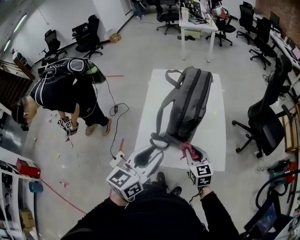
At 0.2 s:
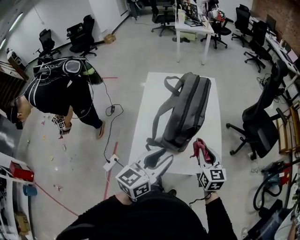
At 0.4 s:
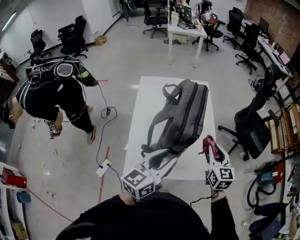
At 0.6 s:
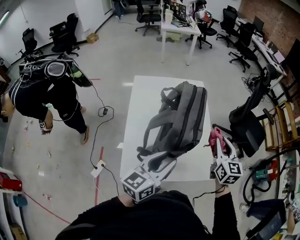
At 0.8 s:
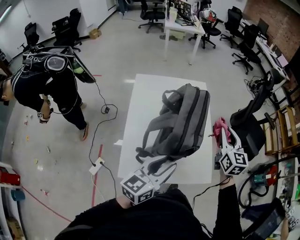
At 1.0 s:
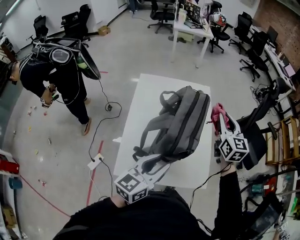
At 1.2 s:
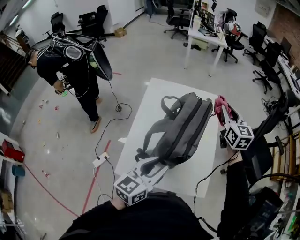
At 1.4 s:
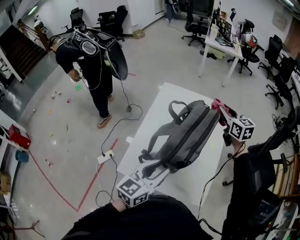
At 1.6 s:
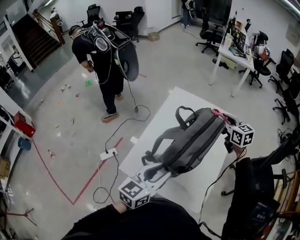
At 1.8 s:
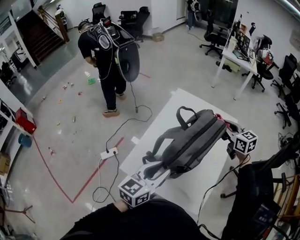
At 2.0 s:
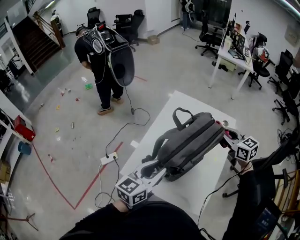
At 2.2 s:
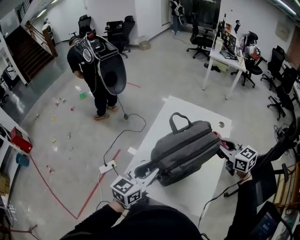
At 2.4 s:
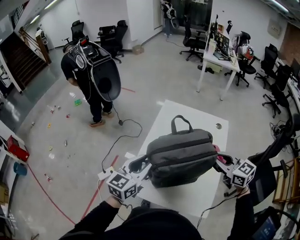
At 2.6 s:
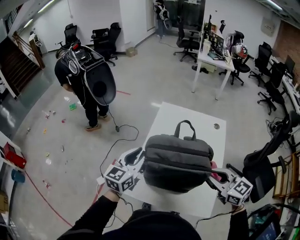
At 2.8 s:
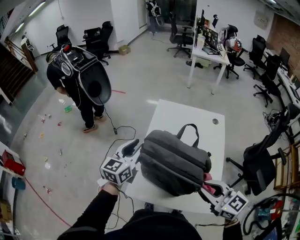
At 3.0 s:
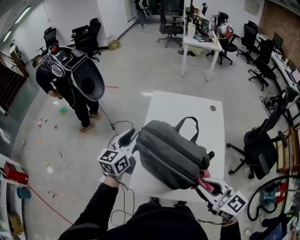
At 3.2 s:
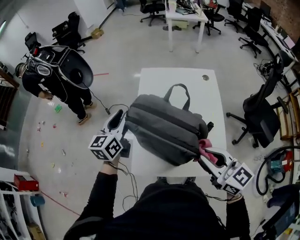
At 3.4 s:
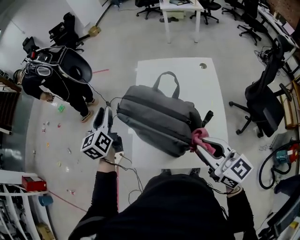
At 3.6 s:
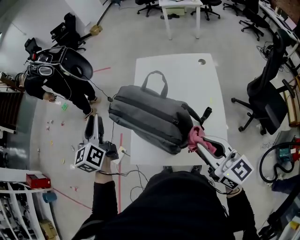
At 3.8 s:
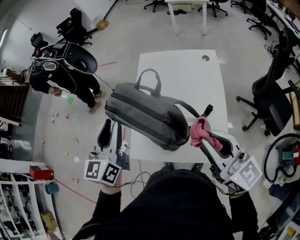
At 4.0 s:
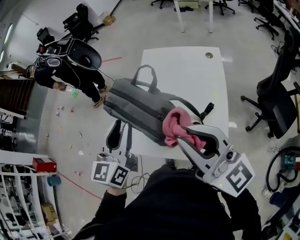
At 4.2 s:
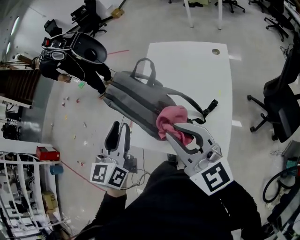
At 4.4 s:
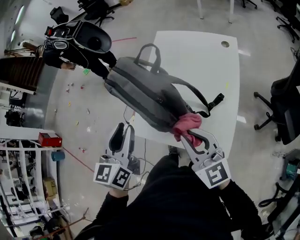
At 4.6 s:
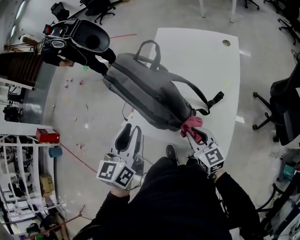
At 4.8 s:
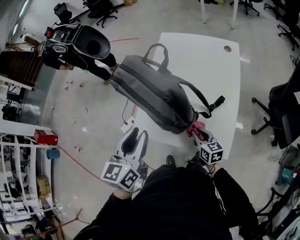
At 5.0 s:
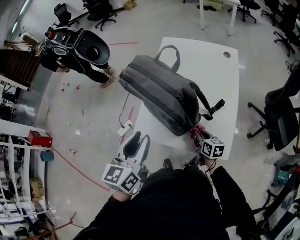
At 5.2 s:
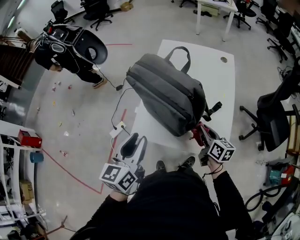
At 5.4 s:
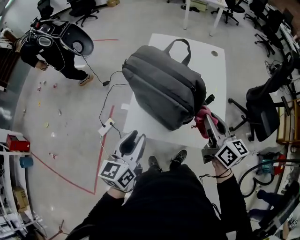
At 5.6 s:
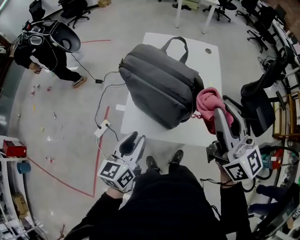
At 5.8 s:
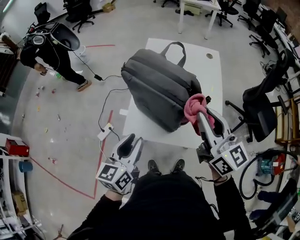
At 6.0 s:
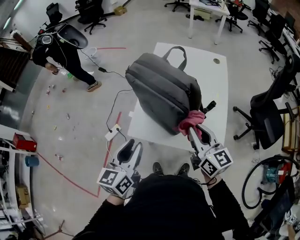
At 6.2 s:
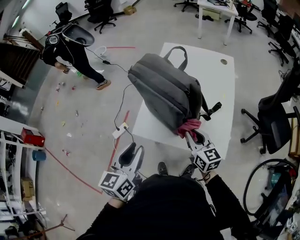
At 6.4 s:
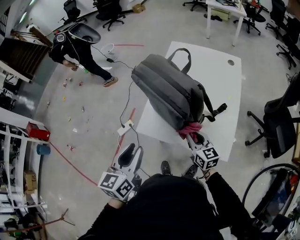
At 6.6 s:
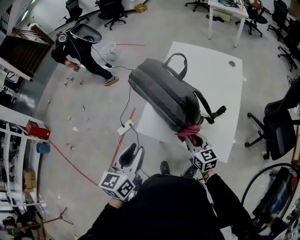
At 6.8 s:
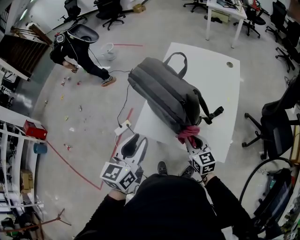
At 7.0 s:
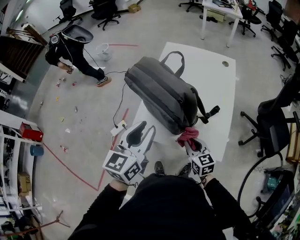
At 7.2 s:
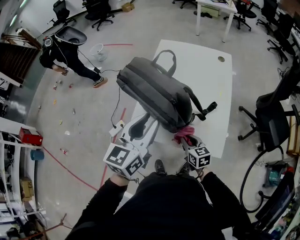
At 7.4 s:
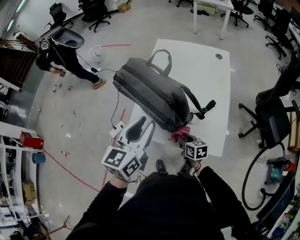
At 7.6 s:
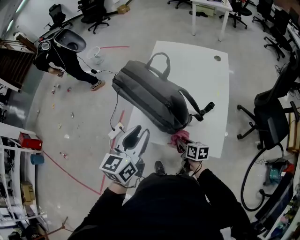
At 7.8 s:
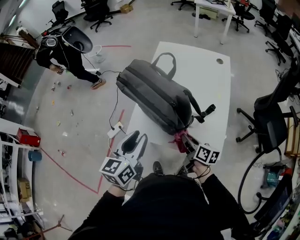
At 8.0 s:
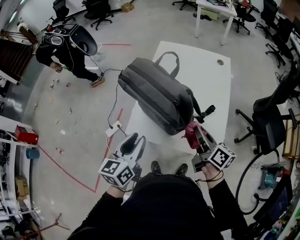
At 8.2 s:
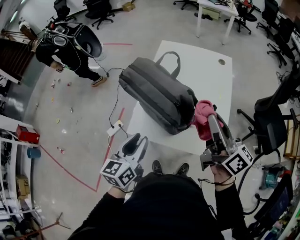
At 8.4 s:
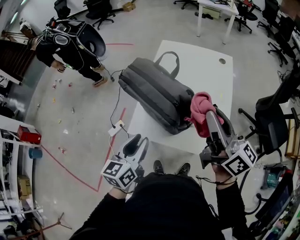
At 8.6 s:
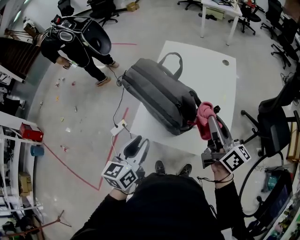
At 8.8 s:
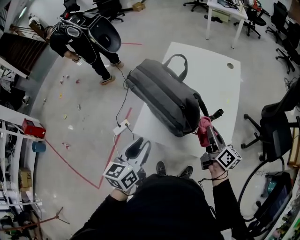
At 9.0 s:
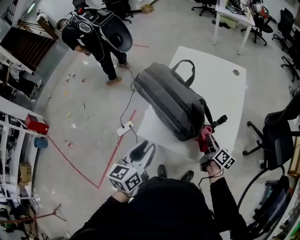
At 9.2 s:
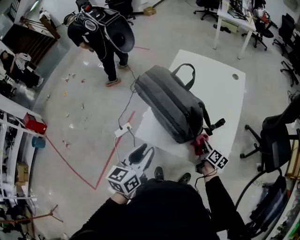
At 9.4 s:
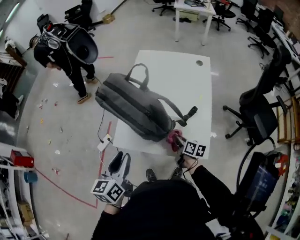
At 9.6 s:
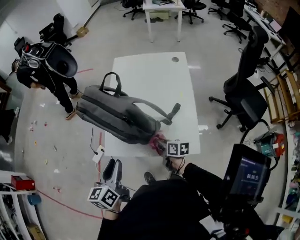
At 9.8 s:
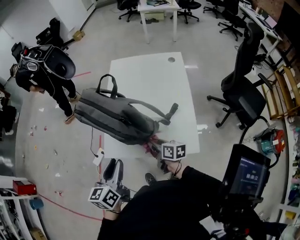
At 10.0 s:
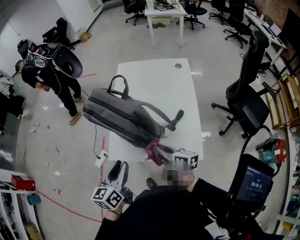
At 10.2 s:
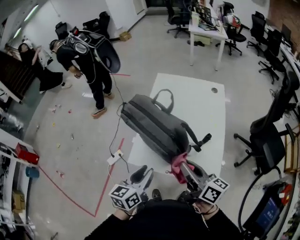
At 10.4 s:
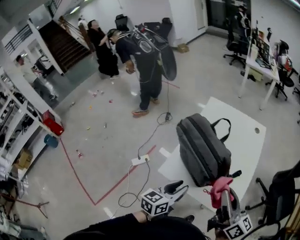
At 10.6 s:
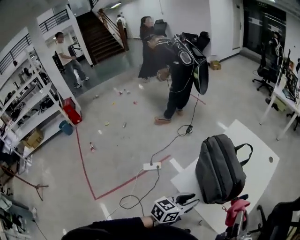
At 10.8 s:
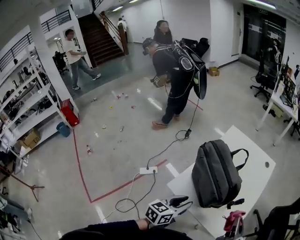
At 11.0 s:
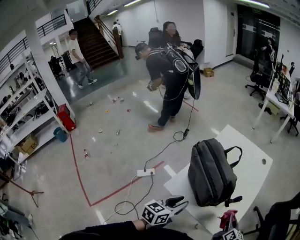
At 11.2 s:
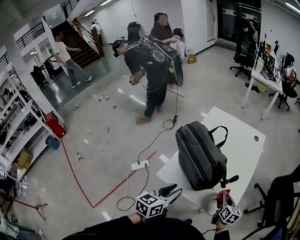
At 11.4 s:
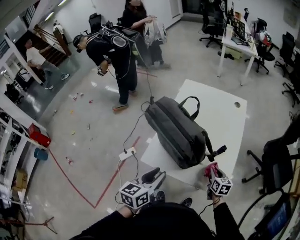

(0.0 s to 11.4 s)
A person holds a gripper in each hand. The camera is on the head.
0.0 s - 1.4 s: The left gripper shifts by approximately 15 cm, while the right gripper ends up about 40 cm from where it was.
1.4 s - 2.8 s: The right gripper is displaced backward and to the left by approximately 35 cm; the left gripper goes some 25 cm forward and to the left.
2.8 s - 4.2 s: The right gripper goes left and right, about 10 cm each way, reversing 2 times, and turns by some 20 degrees; the left gripper travels backward and to the right by roughly 25 cm.
4.2 s - 5.6 s: The left gripper travels to the left, downward and backward by about 20 cm, and swivels about 20 degrees. Meanwhile the right gripper shifts roughly 5 cm to the left, and reaches approximately 40 cm downward, then returns.
5.6 s - 7.2 s: The right gripper travels downward by about 35 cm, and points its fingers approximately 40 degrees further downward. Meanwhile the left gripper travels upward and to the right by about 10 cm.
7.2 s - 8.6 s: The left gripper goes about 10 cm downward, to the left and backward; the right gripper moves up and down over some 40 cm, changing direction 2 times, and tilts its fingers about 30 degrees upward.
8.6 s - 10.0 s: The right gripper is displaced downward and to the left by some 15 cm, and swivels about 30 degrees.
10.0 s - 11.4 s: The right gripper moves downward and to the right, some 15 cm, and rotates approximately 40 degrees.

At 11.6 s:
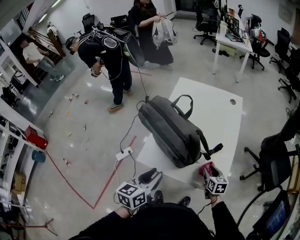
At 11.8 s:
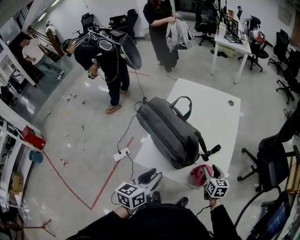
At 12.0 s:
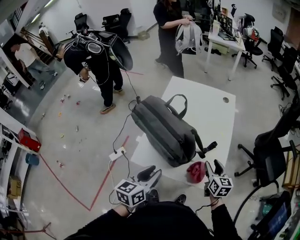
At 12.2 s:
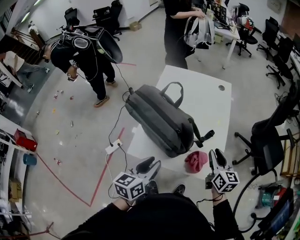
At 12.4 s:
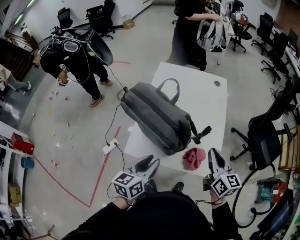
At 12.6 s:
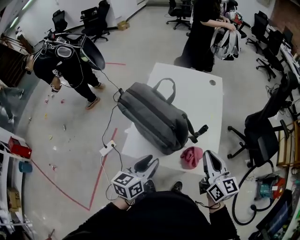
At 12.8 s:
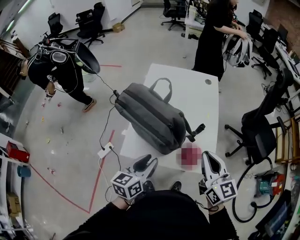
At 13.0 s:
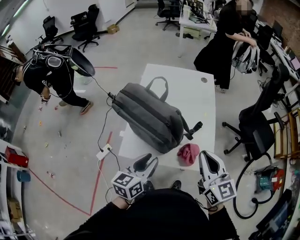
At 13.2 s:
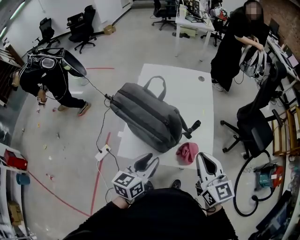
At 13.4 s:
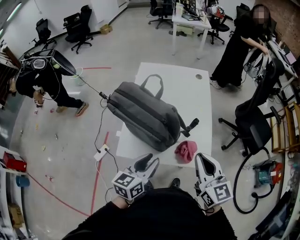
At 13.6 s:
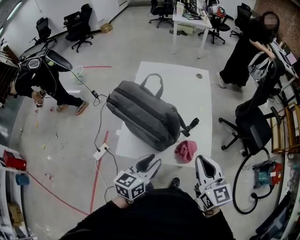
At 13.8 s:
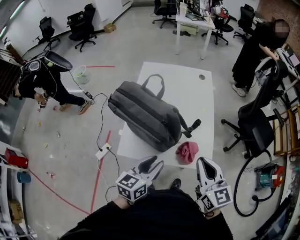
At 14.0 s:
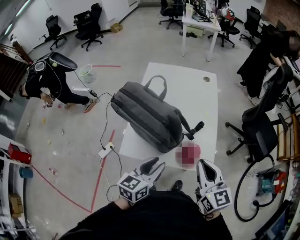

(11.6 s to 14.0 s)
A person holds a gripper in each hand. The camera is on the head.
11.6 s - 12.8 s: The right gripper heads upward, covering approximately 30 cm, tips its fingers upward by some 30 degrees, and closes.
12.8 s - 14.0 s: The left gripper heads to the right, covering about 5 cm.

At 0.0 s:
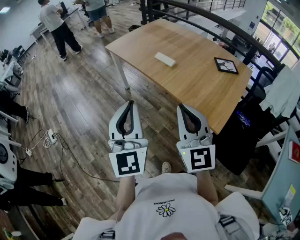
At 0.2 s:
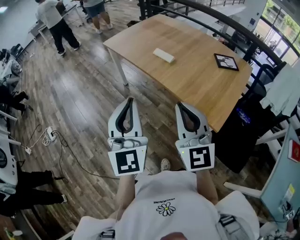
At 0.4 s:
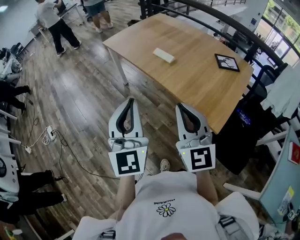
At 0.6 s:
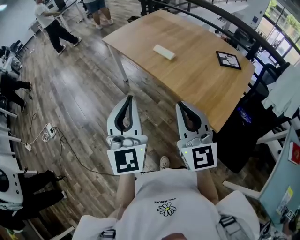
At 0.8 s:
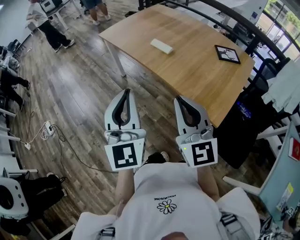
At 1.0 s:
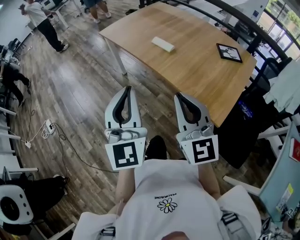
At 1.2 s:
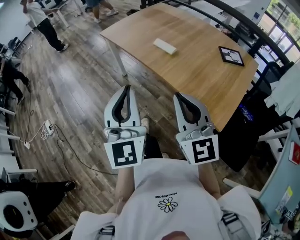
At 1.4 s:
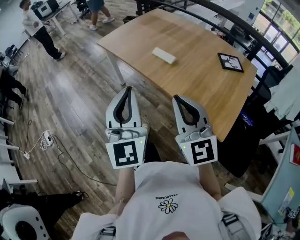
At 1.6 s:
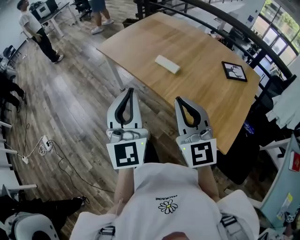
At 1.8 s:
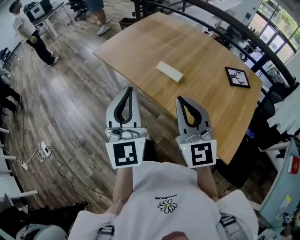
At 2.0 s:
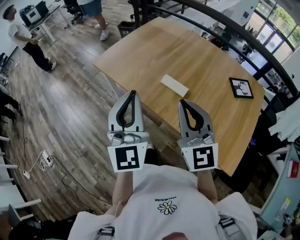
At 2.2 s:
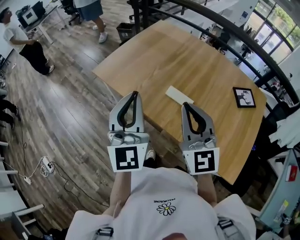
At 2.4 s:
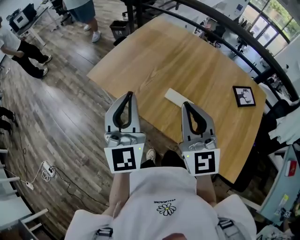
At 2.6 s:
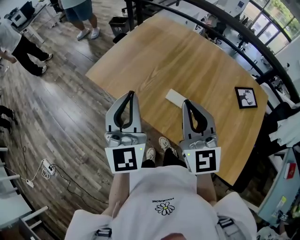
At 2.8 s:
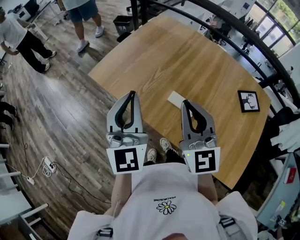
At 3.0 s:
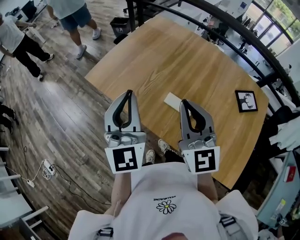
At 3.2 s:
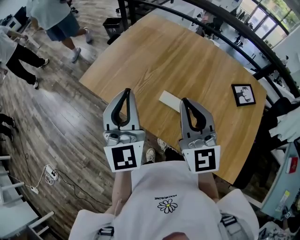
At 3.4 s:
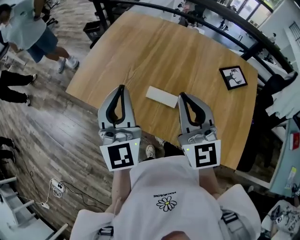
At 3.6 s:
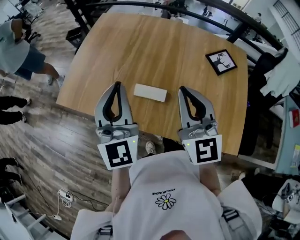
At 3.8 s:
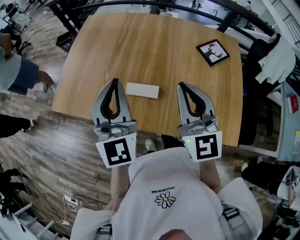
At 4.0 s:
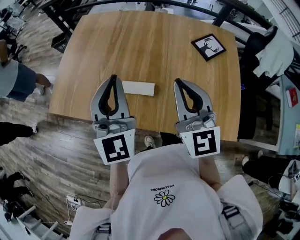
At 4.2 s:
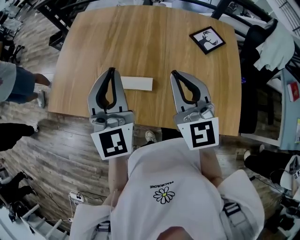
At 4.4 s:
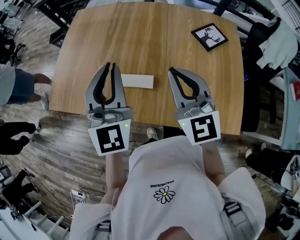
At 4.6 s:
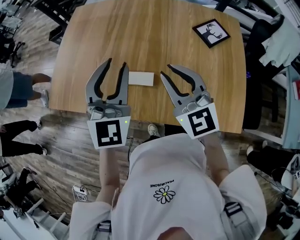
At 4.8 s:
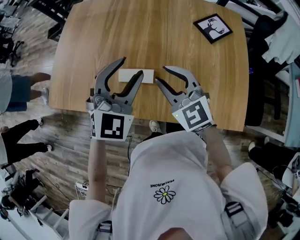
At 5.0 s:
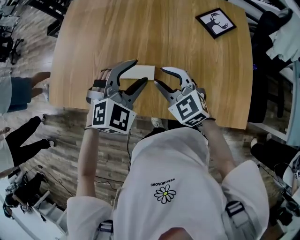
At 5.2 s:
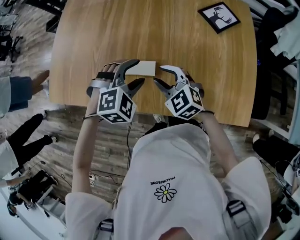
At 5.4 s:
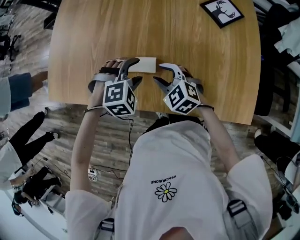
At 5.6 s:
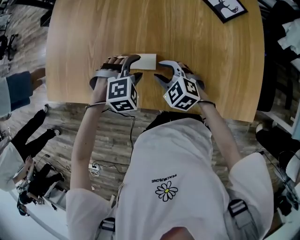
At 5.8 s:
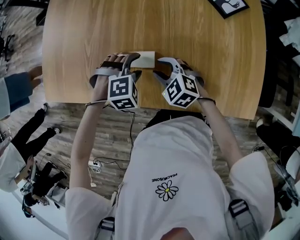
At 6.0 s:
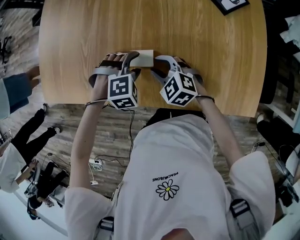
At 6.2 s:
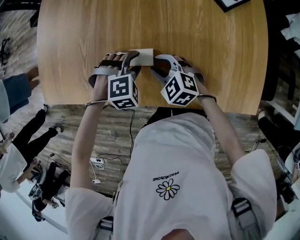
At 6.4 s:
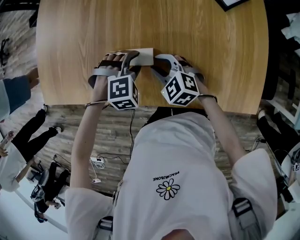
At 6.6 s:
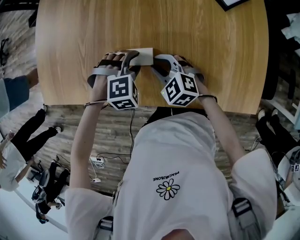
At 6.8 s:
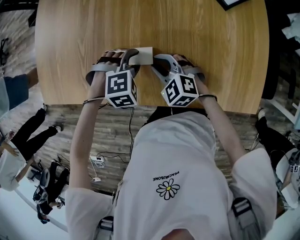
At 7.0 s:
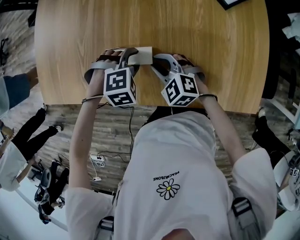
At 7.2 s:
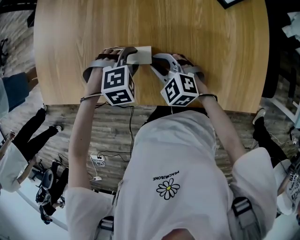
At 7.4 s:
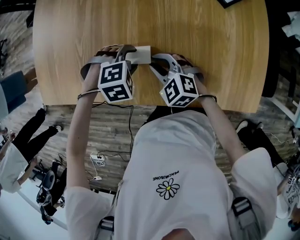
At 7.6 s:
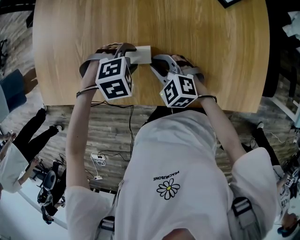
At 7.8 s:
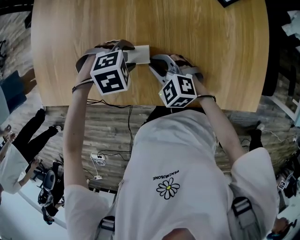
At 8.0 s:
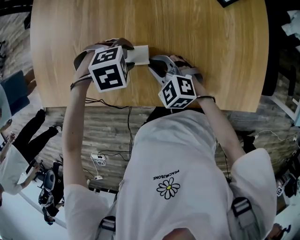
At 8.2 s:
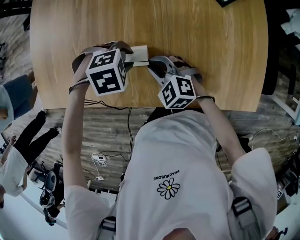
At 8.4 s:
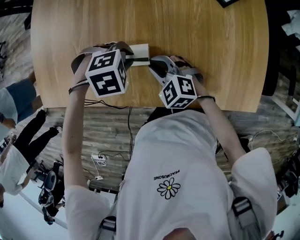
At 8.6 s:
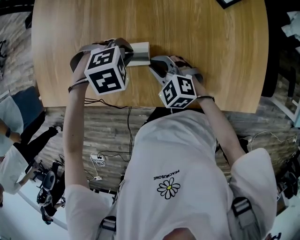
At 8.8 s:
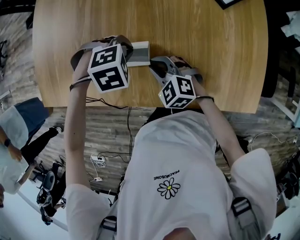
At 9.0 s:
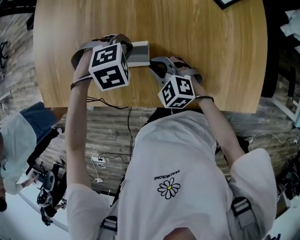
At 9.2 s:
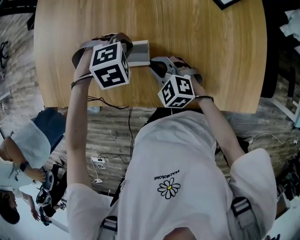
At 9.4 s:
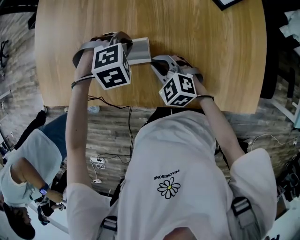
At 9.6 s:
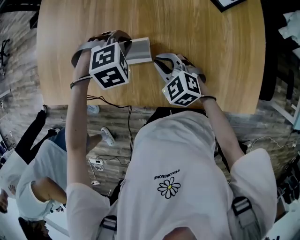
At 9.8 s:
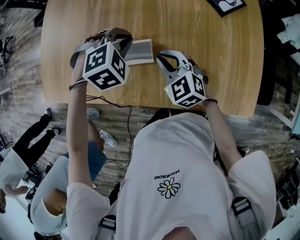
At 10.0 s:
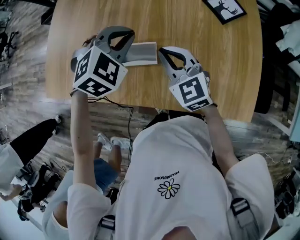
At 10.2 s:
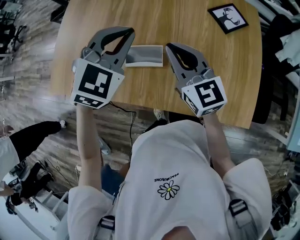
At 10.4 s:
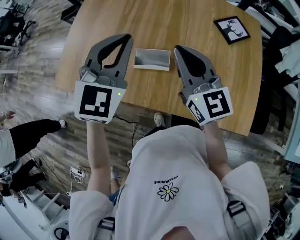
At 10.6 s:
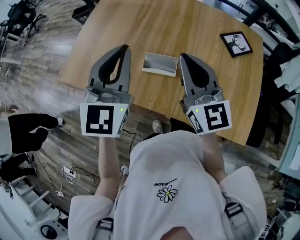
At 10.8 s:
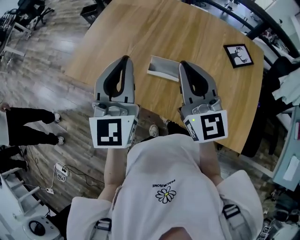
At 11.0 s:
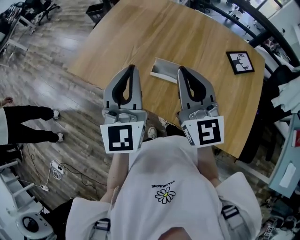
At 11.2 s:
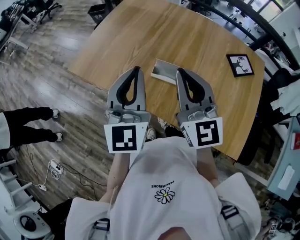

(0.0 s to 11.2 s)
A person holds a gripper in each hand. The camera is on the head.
0.0 s - 1.6 s: Both grippers move forward, some 15 cm.
1.6 s - 3.2 s: The grippers both shift forward by approximately 35 cm.
3.2 s - 4.8 s: The right gripper travels downward by some 15 cm, swivels approximately 20 degrees, and opens; the left gripper ends up roughly 25 cm from where it was, rotates about 60 degrees, and opens its fingers.
4.8 s - 6.4 s: The grippers both shift downward by roughly 25 cm. The left gripper tips its fingers downward by some 50 degrees, while the right gripper turns by roughly 30 degrees.
6.4 s - 8.0 s: The left gripper changes its angle by about 30 degrees.
8.0 s - 9.6 s: The left gripper shifts by approximately 5 cm, turns by about 20 degrees, and closes.
9.6 s - 11.2 s: The right gripper moves upward, approximately 30 cm, and points its fingers roughly 50 degrees further upward. The left gripper is displaced upward, backward and to the left by roughly 35 cm, and tilts its fingers roughly 80 degrees upward.
